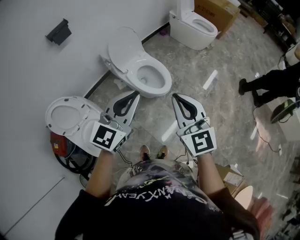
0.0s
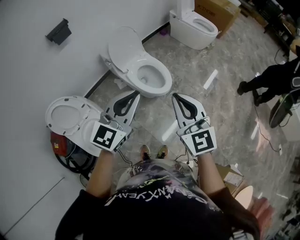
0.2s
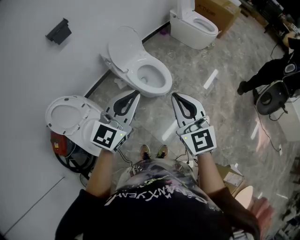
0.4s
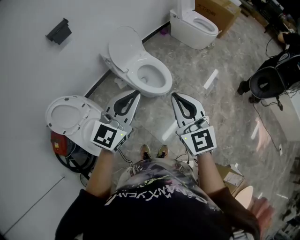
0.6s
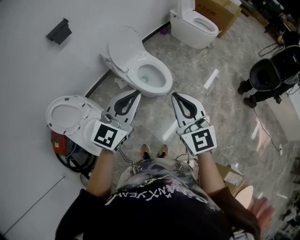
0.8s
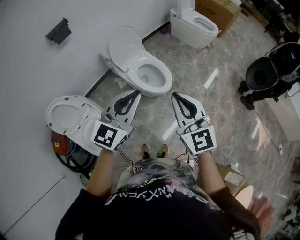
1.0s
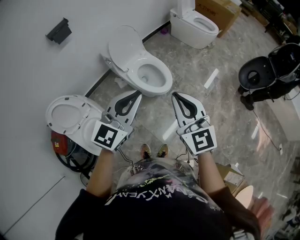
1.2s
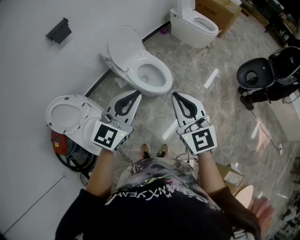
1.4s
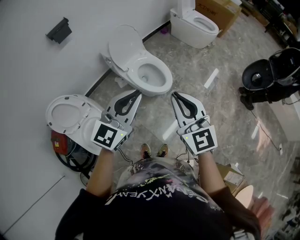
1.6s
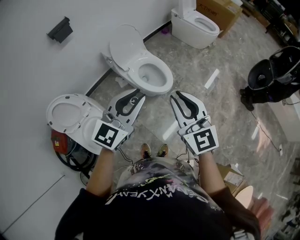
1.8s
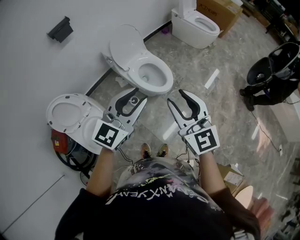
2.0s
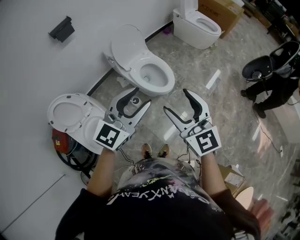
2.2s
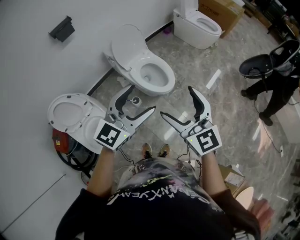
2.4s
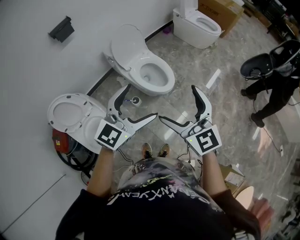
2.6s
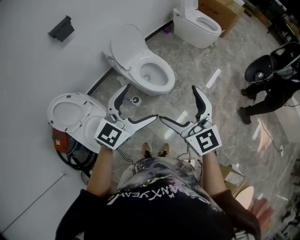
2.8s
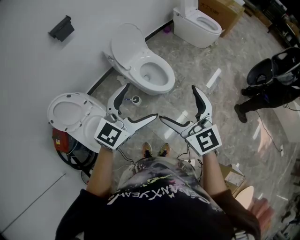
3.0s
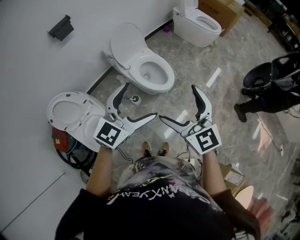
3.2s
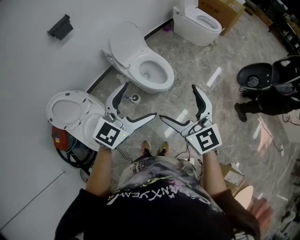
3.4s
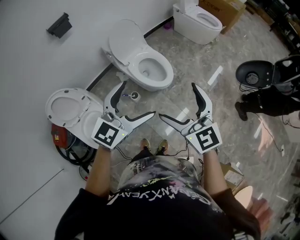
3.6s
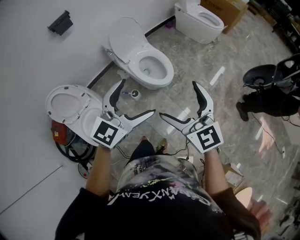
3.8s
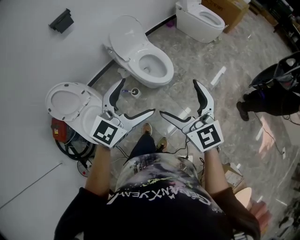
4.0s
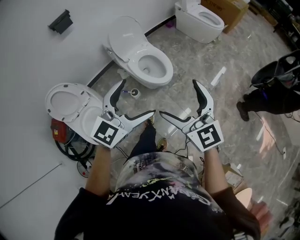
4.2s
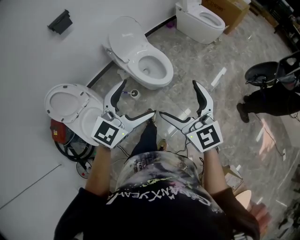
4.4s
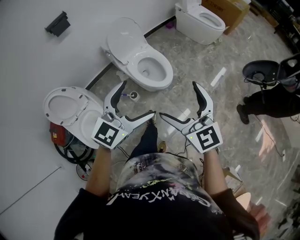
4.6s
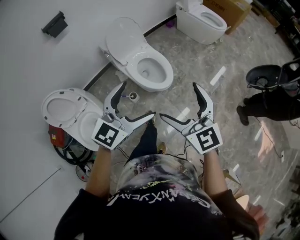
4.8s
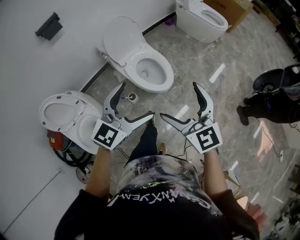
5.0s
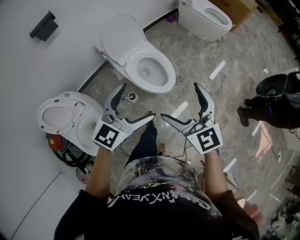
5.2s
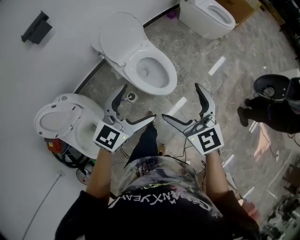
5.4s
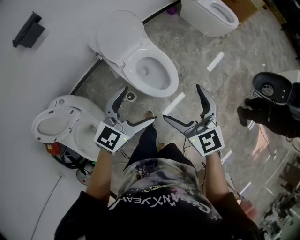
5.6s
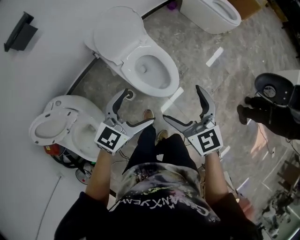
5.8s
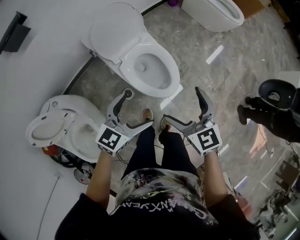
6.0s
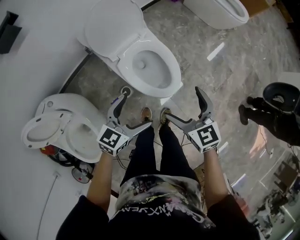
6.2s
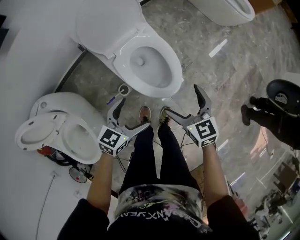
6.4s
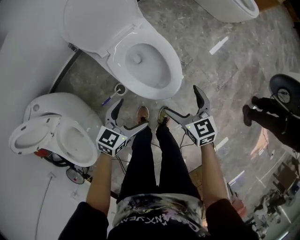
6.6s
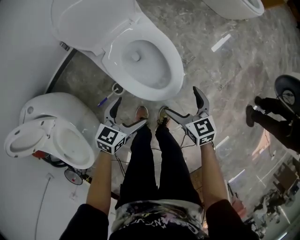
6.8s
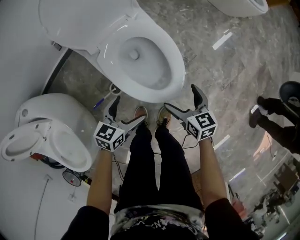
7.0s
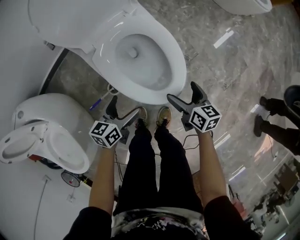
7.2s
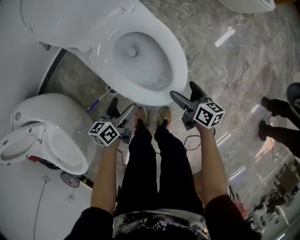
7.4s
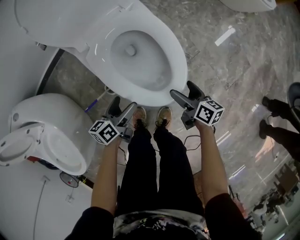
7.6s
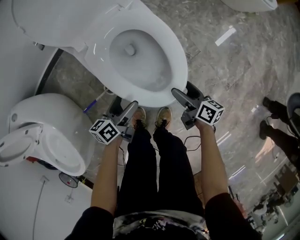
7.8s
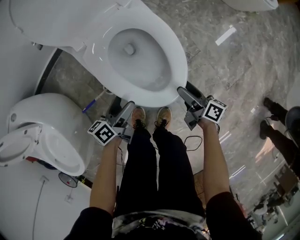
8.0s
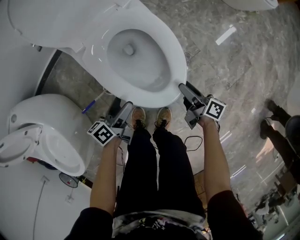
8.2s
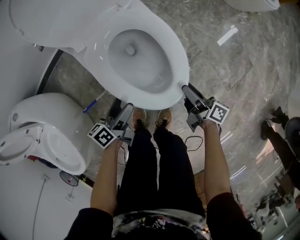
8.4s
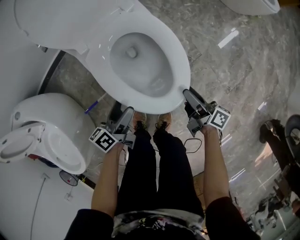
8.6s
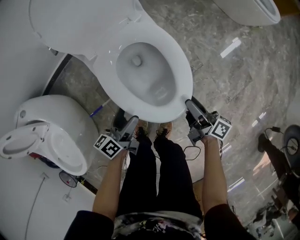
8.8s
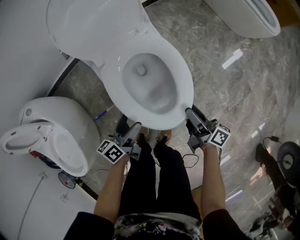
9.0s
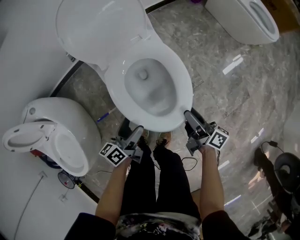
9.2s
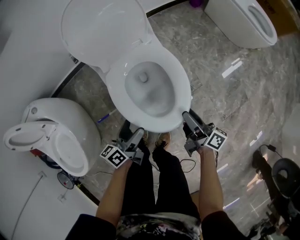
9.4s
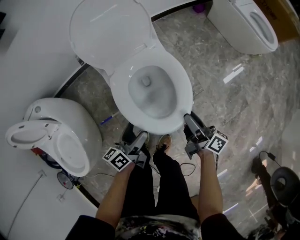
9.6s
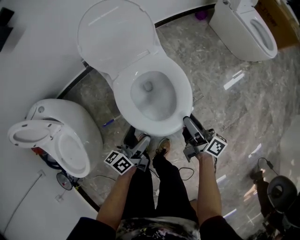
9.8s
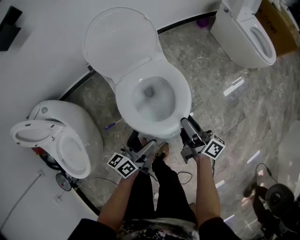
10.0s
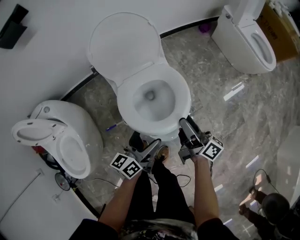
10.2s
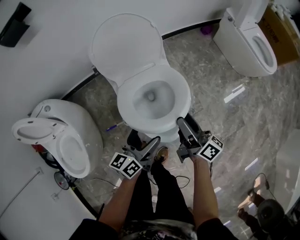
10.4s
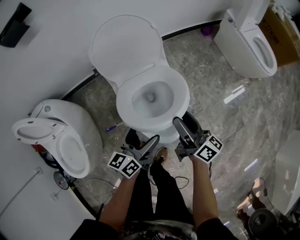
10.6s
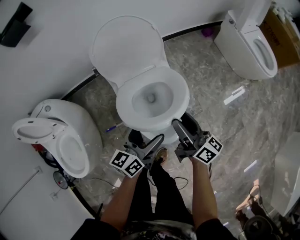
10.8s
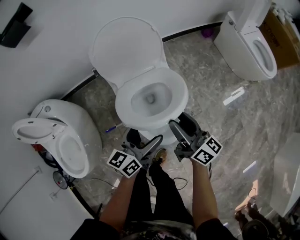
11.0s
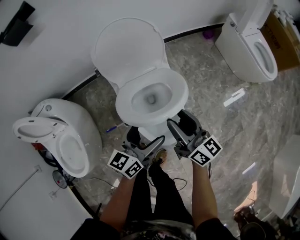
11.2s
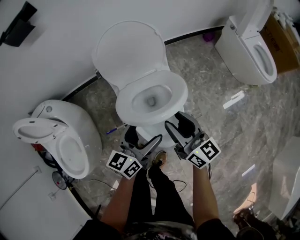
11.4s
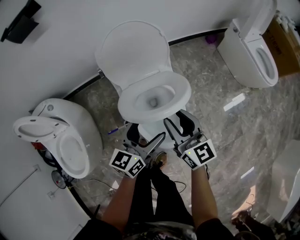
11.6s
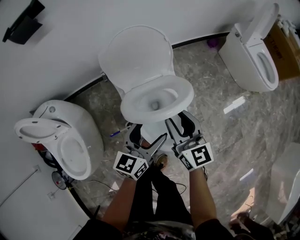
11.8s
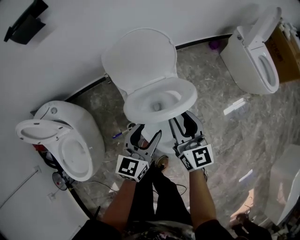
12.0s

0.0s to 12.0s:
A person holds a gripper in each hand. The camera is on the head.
0.0s to 1.6s: Neither gripper changes place.
1.6s to 3.0s: The left gripper opens; the right gripper opens.
3.0s to 4.4s: The grippers both shift to the right by approximately 5 cm.
4.4s to 6.0s: The two grippers go some 40 cm forward and downward. The left gripper changes its angle by roughly 30 degrees. The right gripper swivels about 20 degrees.
6.0s to 7.6s: Both grippers travel together downward, some 50 cm. The left gripper rotates around the line of its fingers by about 50 degrees, counterclockwise from behind. The right gripper rolls clockwise, seen from behind, by some 50 degrees.
7.6s to 9.0s: Both grippers move upward, approximately 10 cm. The right gripper turns by some 30 degrees, and closes up.
9.0s to 10.4s: The right gripper is displaced upward and forward by roughly 20 cm. The left gripper shifts approximately 15 cm upward.
10.4s to 12.0s: The left gripper is displaced forward and upward by approximately 10 cm, changes its angle by approximately 30 degrees, and closes its fingers; the right gripper heads to the left, forward and upward, covering some 10 cm, and rotates around the line of its fingers by some 50 degrees, counterclockwise from behind.

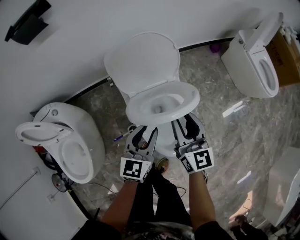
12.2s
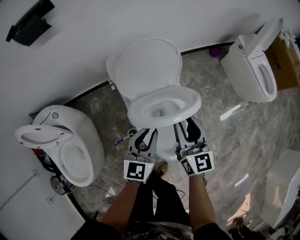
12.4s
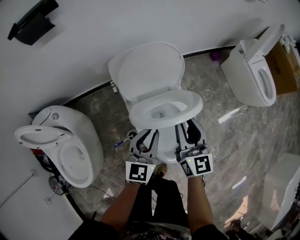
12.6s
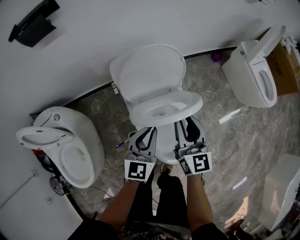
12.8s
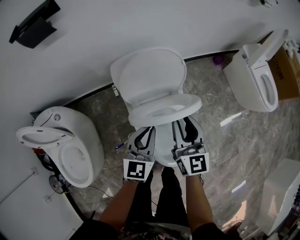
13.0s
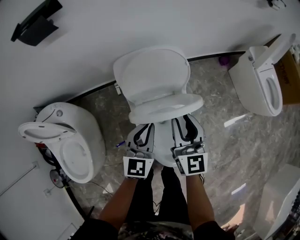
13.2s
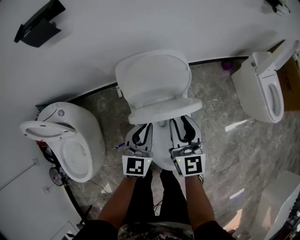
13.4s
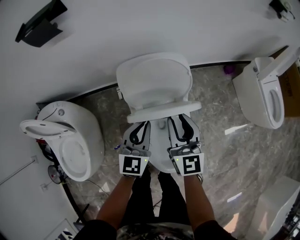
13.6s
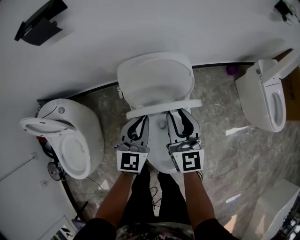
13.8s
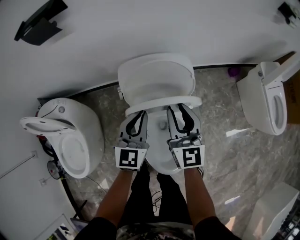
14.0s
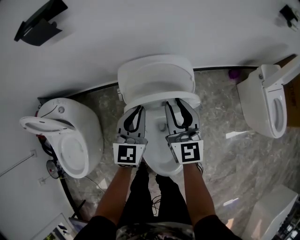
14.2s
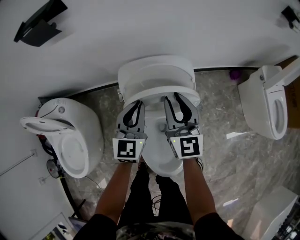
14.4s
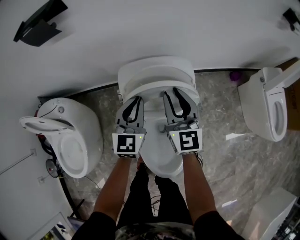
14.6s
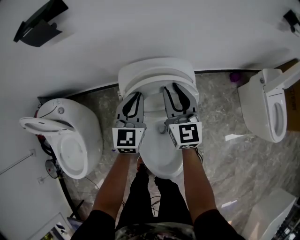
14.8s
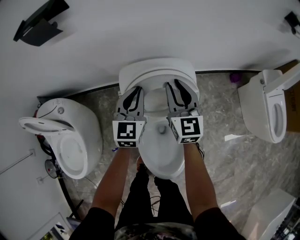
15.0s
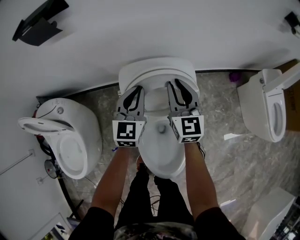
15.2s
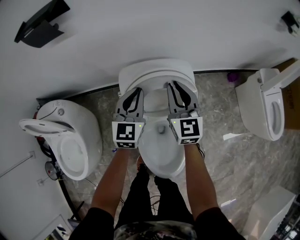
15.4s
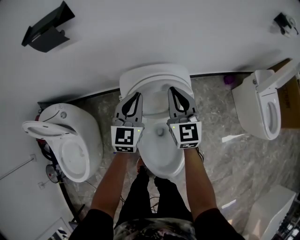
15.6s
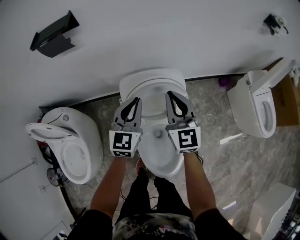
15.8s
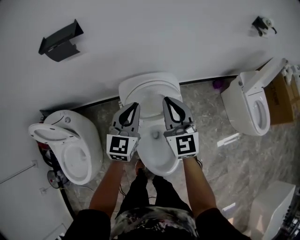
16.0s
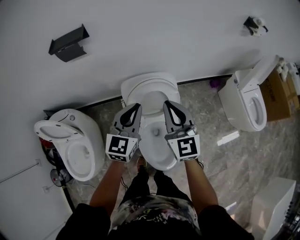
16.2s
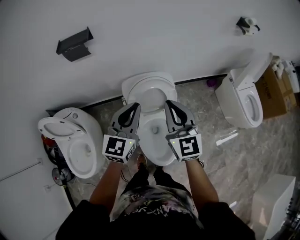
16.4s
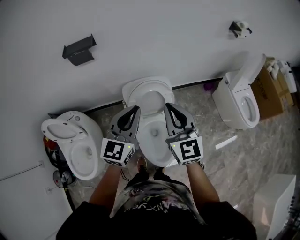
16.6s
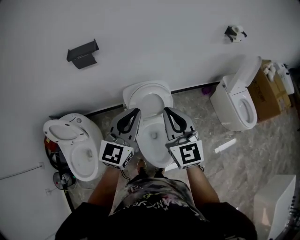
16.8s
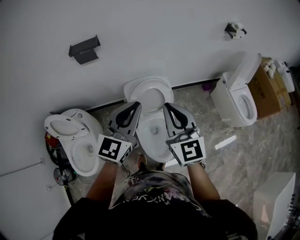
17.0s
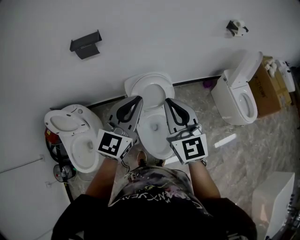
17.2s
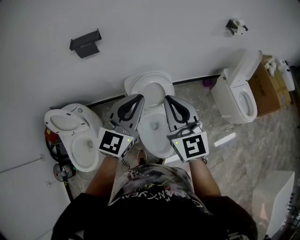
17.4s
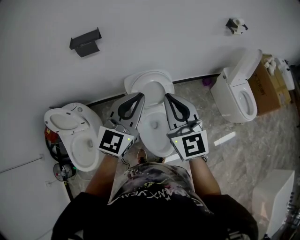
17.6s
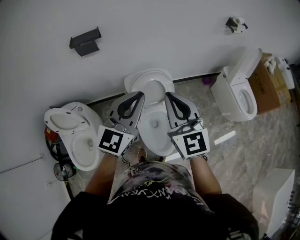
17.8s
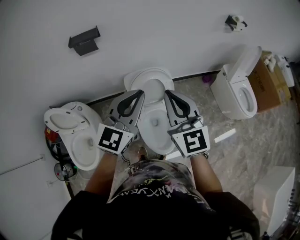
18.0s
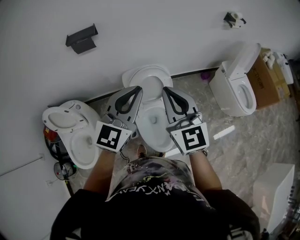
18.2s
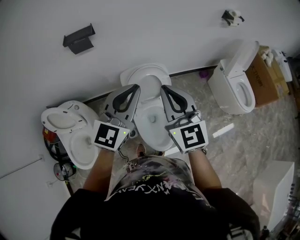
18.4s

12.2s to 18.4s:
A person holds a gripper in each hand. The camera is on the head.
12.2s to 13.8s: Both grippers travel together forward, some 15 cm.
13.8s to 15.4s: Both grippers move forward, some 15 cm.
15.4s to 16.8s: Both grippers move upward and backward, approximately 40 cm. The left gripper turns by some 20 degrees.
16.8s to 18.4s: There are only small adjustments of the grippers.

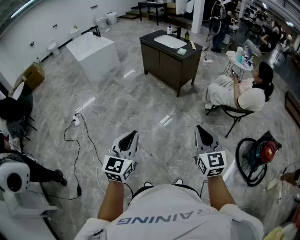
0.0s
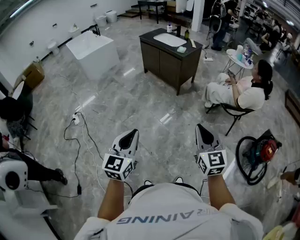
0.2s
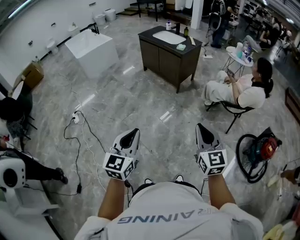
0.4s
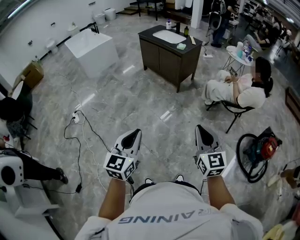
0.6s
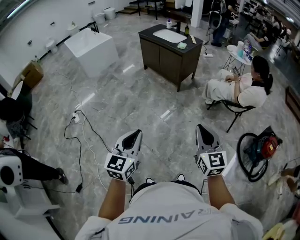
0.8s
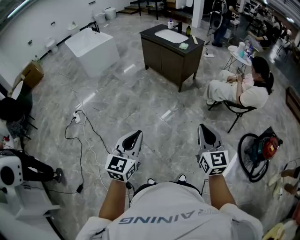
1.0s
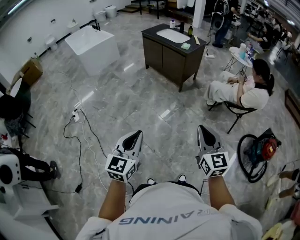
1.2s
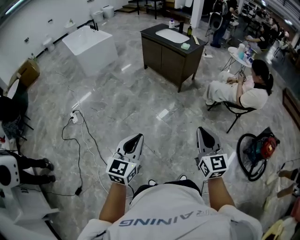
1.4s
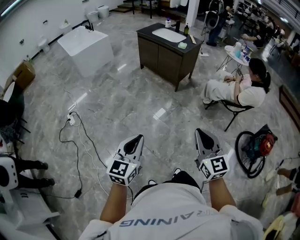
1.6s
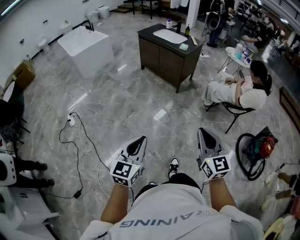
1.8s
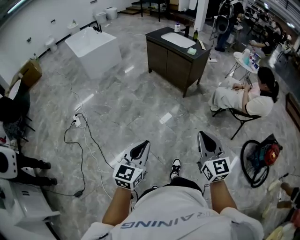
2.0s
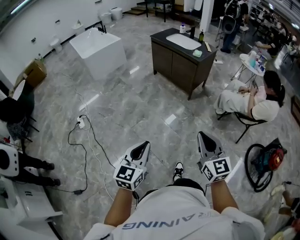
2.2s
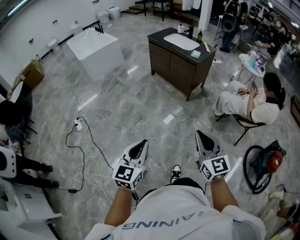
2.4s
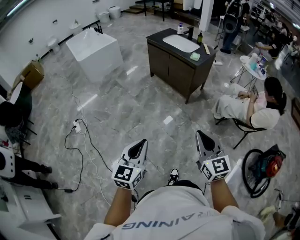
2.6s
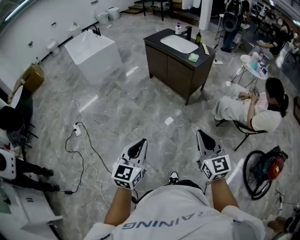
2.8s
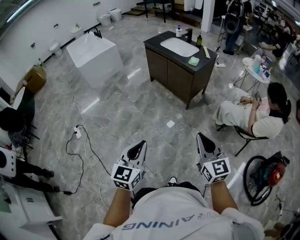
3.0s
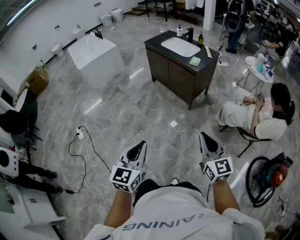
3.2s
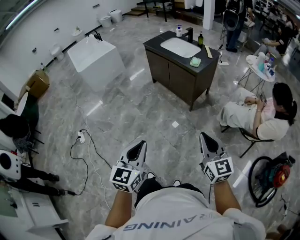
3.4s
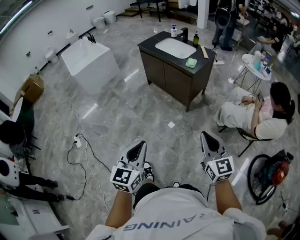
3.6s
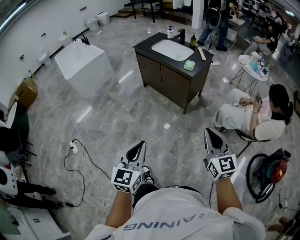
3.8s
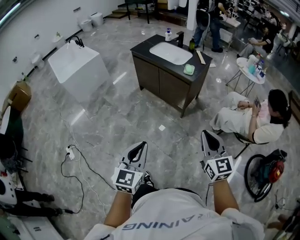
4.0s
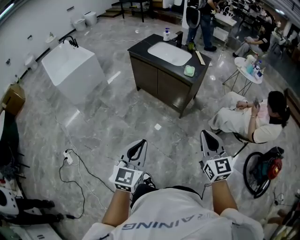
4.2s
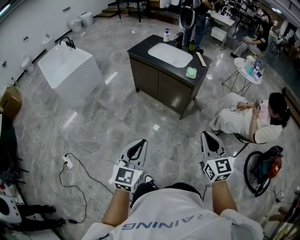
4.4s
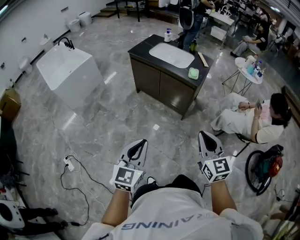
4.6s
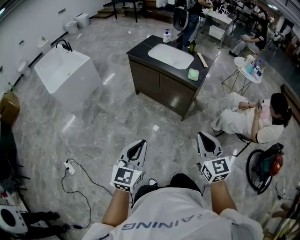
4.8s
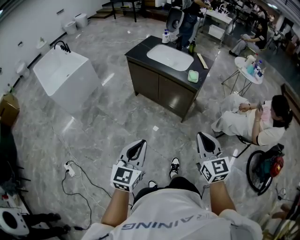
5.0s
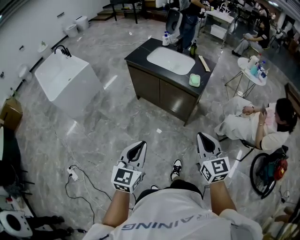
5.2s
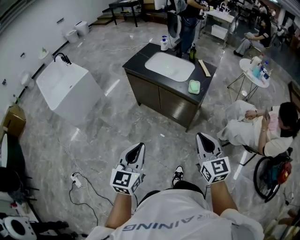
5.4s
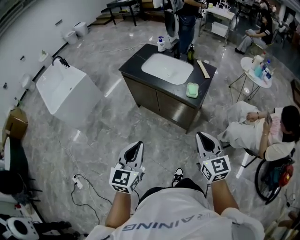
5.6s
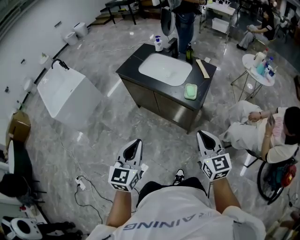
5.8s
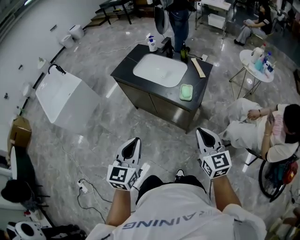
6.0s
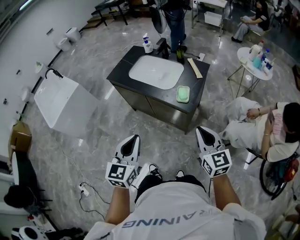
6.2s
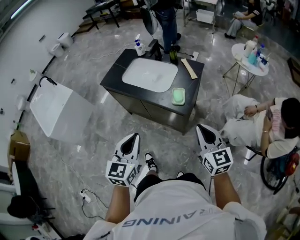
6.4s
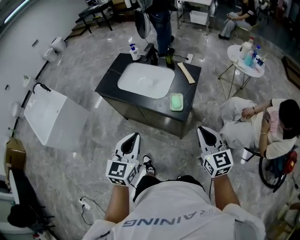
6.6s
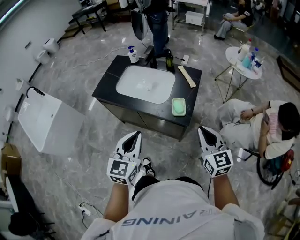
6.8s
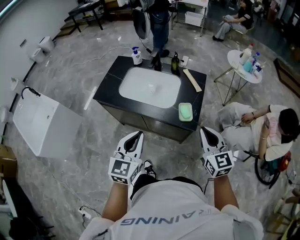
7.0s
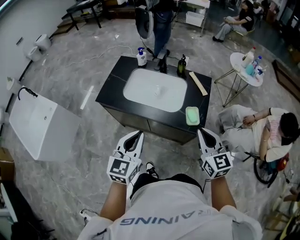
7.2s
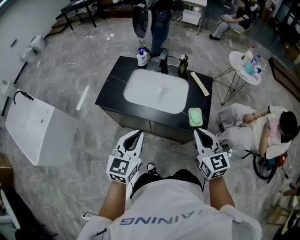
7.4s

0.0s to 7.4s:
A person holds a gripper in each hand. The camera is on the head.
0.0s to 1.4s: The left gripper moves roughly 5 cm, while the right gripper goes about 5 cm to the left.
1.4s to 3.0s: The two grippers go roughly 25 cm forward.
3.0s to 4.4s: Both grippers move forward and to the left, approximately 25 cm.
4.4s to 6.0s: The two grippers go approximately 30 cm forward.
6.0s to 7.4s: Both grippers travel together forward and to the left, about 30 cm. The left gripper turns by roughly 20 degrees.
